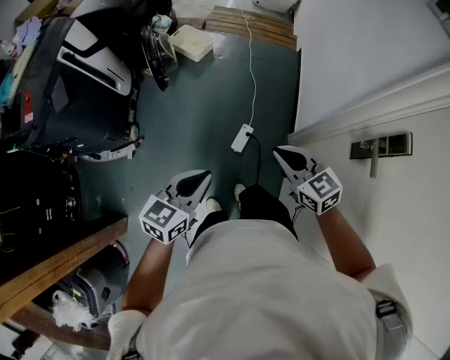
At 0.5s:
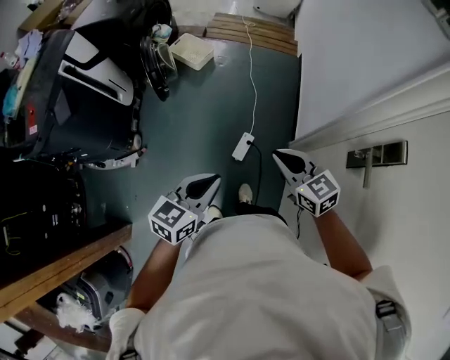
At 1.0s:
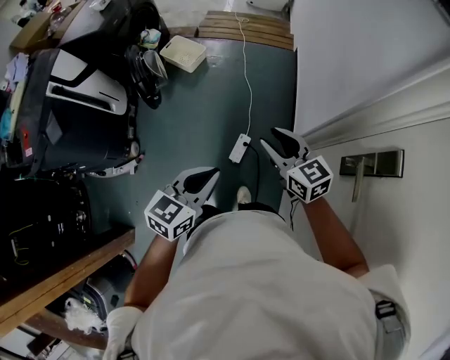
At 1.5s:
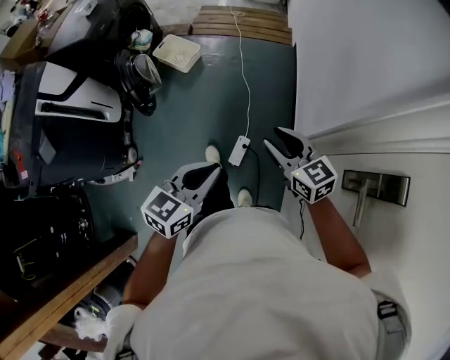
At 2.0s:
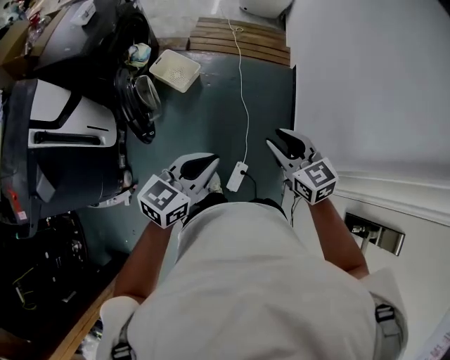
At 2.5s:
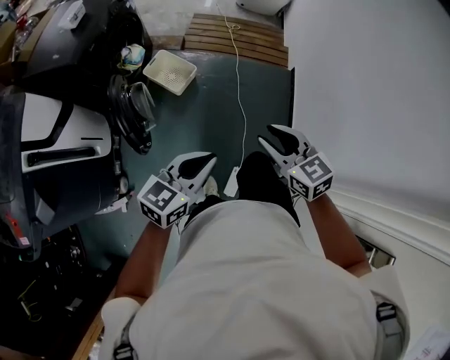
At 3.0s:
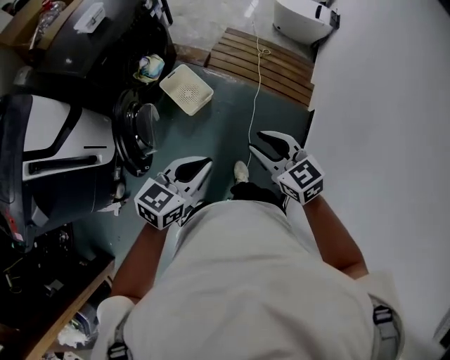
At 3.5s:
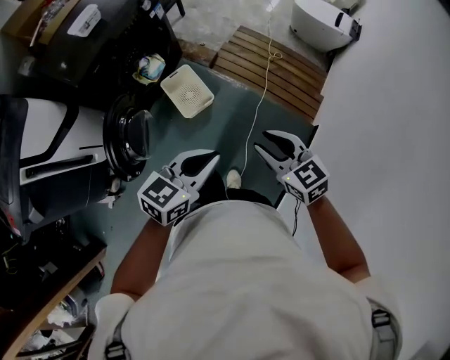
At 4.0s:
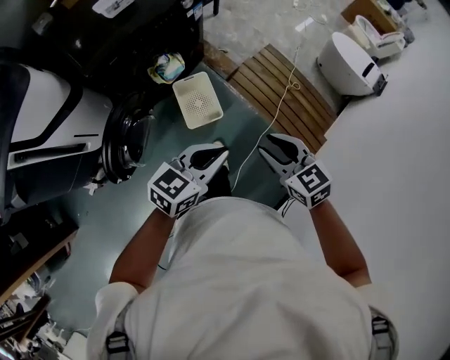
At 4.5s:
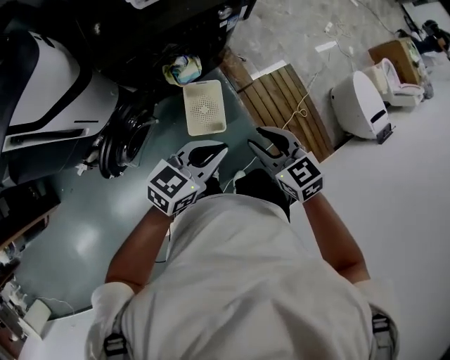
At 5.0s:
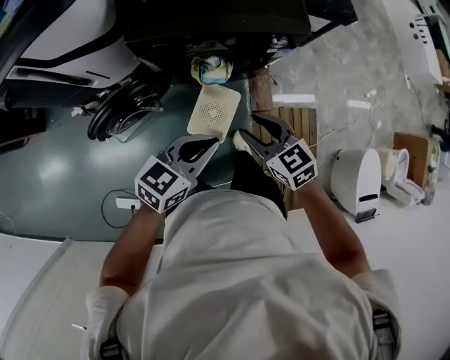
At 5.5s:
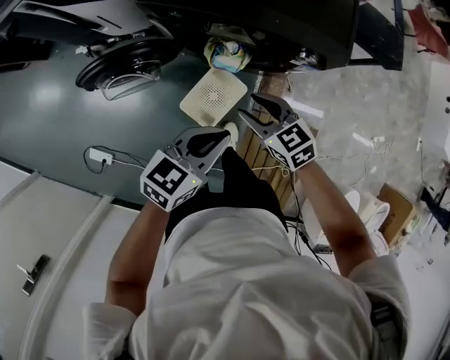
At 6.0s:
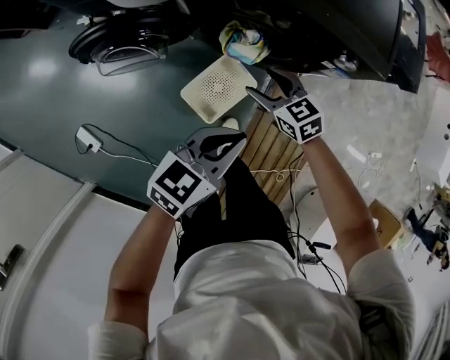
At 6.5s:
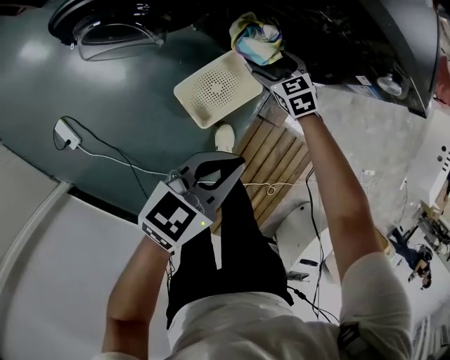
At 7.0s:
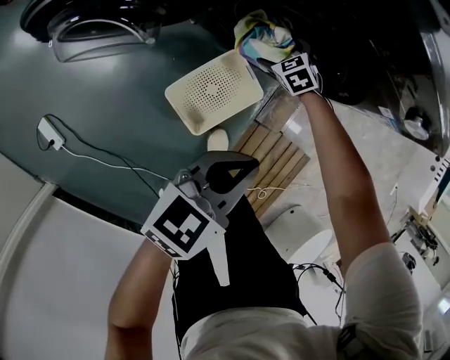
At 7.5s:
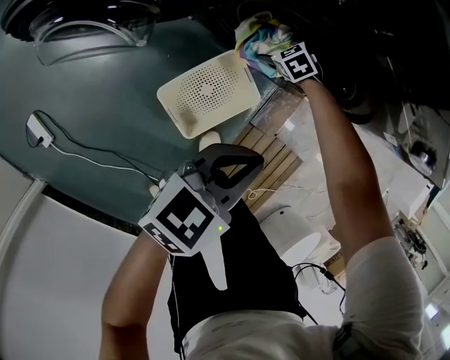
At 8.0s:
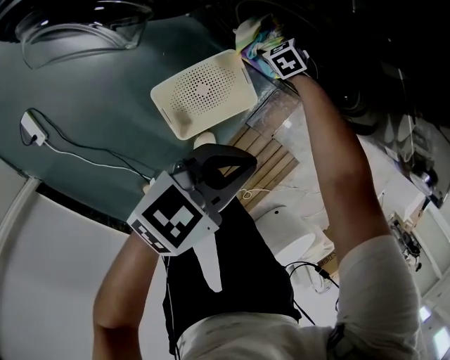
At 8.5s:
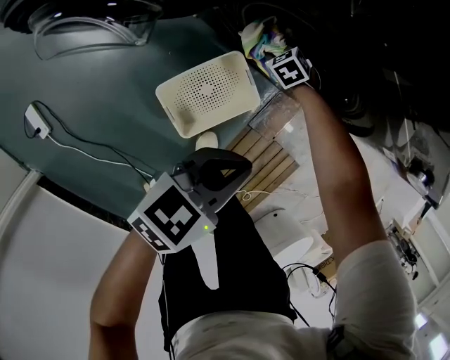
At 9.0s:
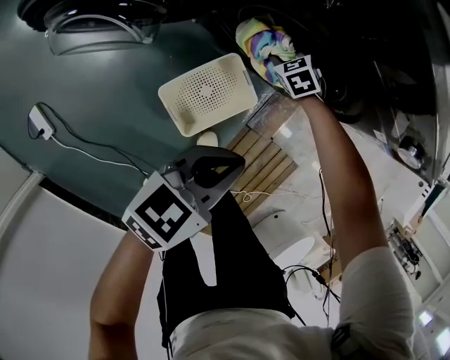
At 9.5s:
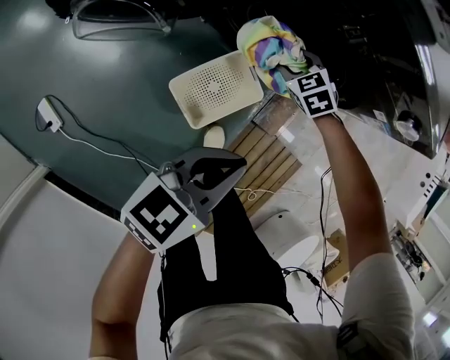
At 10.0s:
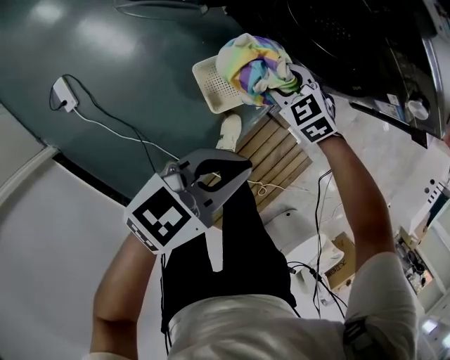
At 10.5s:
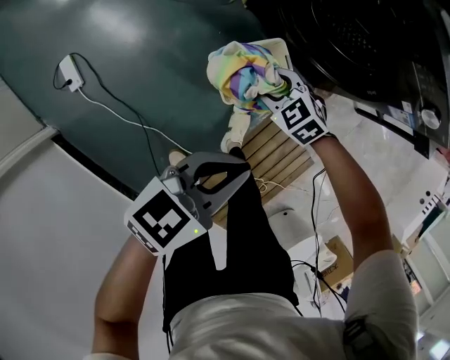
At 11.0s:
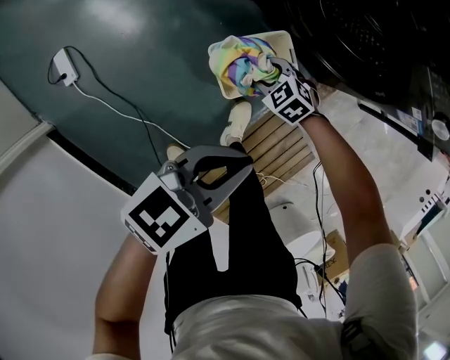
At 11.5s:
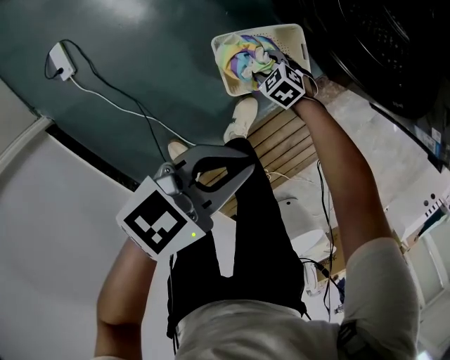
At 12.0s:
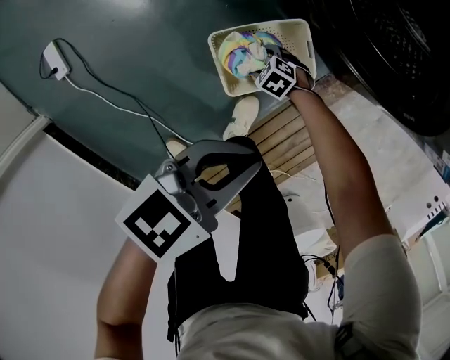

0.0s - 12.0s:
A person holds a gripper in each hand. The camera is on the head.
0.0s - 2.0s: The grippers both shift forward by roughly 35 cm.
2.0s - 4.0s: Both grippers are carried roughly 60 cm. The left gripper swivels roughly 30 degrees. The right gripper swivels roughly 40 degrees.
4.0s - 6.0s: The right gripper ends up some 50 cm from where it was, and rotates some 70 degrees; the left gripper shifts by some 35 cm, and changes its angle by roughly 60 degrees.
6.0s - 8.0s: The left gripper moves downward, some 25 cm. Meanwhile the right gripper goes roughly 50 cm downward and forward, angles its fingers downward, by approximately 30 degrees, and opens.
8.0s - 10.0s: The right gripper moves upward and backward, about 40 cm, changes its angle by some 20 degrees, and closes its fingers; the left gripper goes roughly 20 cm backward and upward.
10.0s - 12.0s: The left gripper travels downward by approximately 15 cm, while the right gripper moves downward, about 35 cm, and swivels approximately 30 degrees.

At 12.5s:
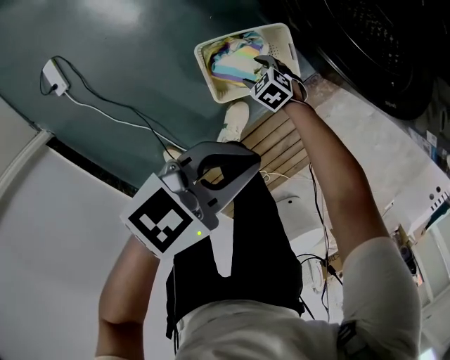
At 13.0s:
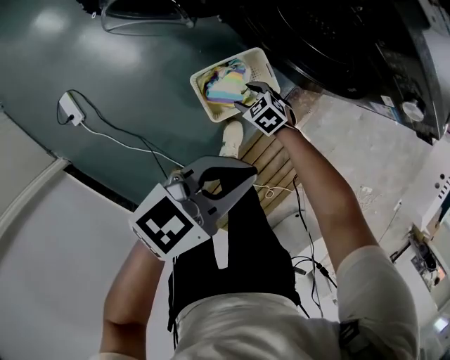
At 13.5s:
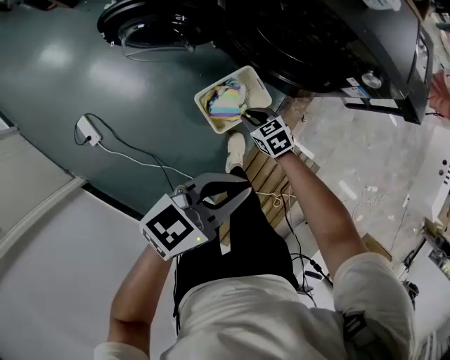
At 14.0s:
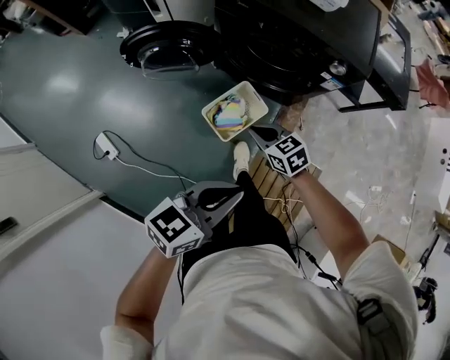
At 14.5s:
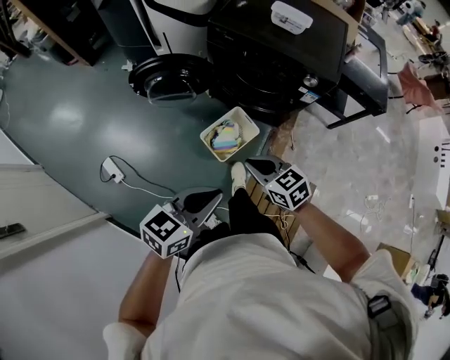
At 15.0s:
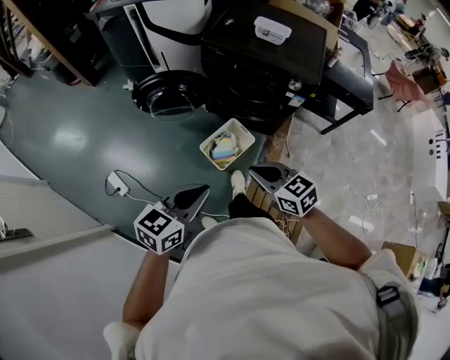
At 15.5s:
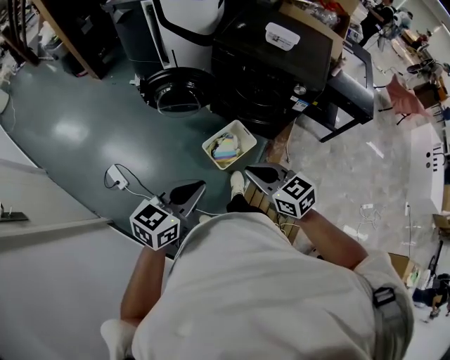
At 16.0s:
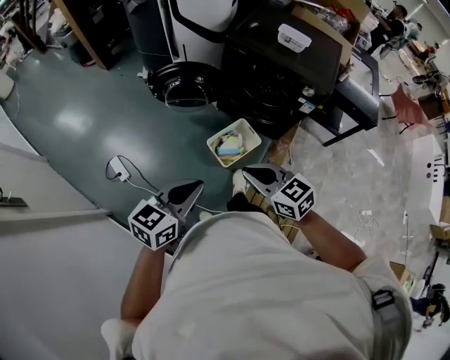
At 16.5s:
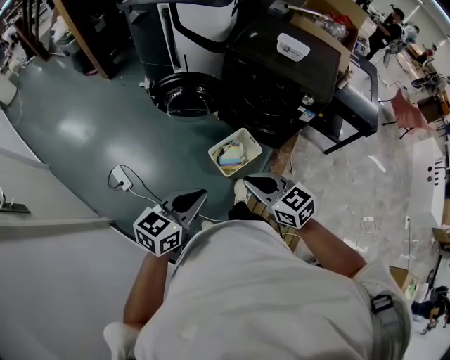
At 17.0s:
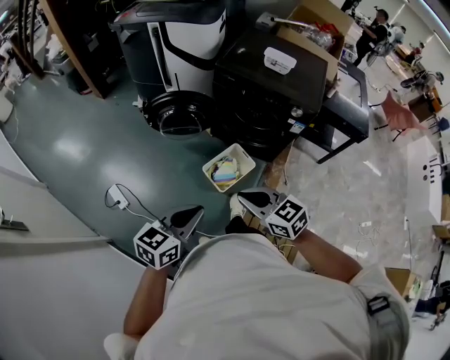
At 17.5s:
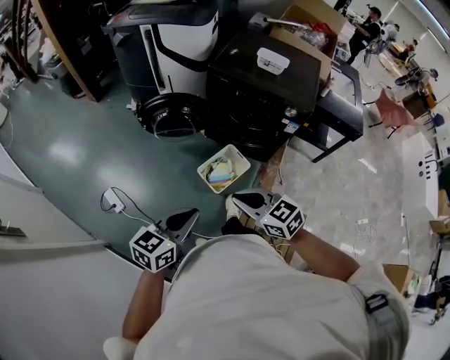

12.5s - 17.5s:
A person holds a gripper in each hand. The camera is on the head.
12.5s - 15.0s: The right gripper travels upward by about 70 cm, angles its fingers upward, by some 40 degrees, and closes its fingers. The left gripper is displaced upward by about 40 cm.
15.0s - 17.5s: The two grippers go roughly 5 cm to the left.

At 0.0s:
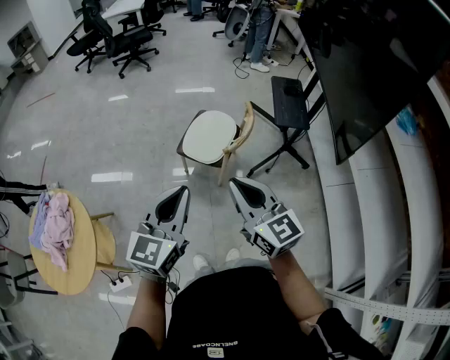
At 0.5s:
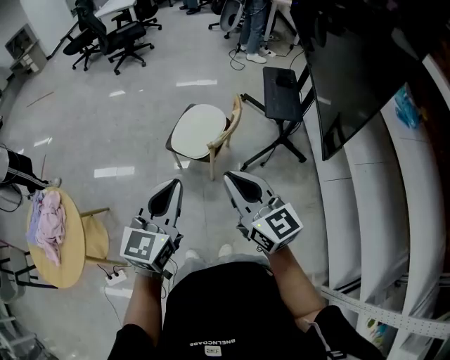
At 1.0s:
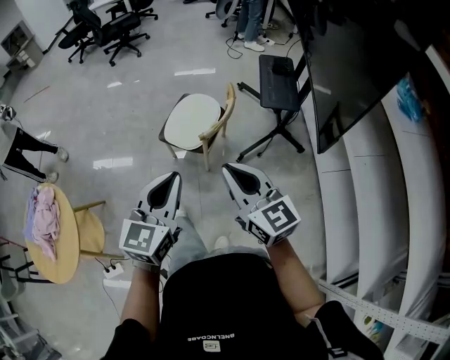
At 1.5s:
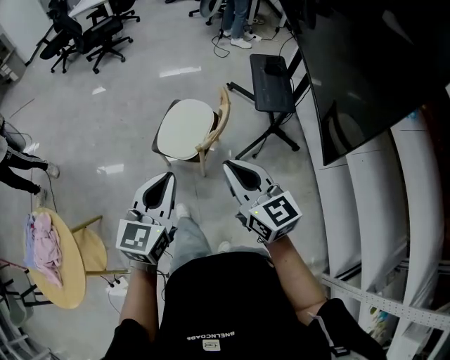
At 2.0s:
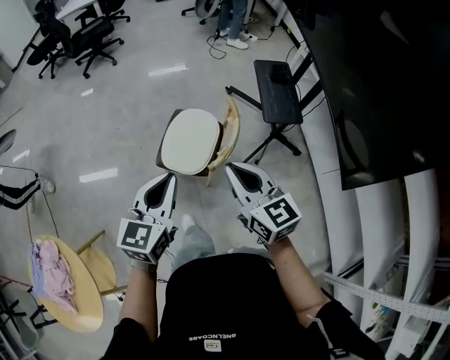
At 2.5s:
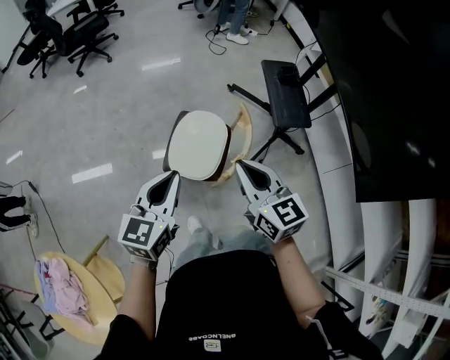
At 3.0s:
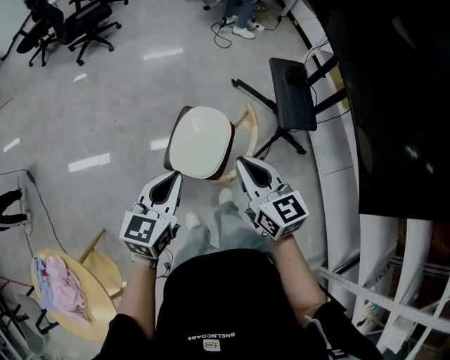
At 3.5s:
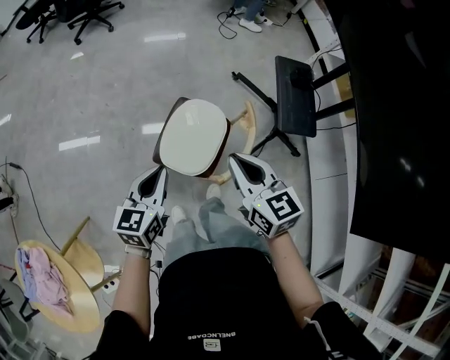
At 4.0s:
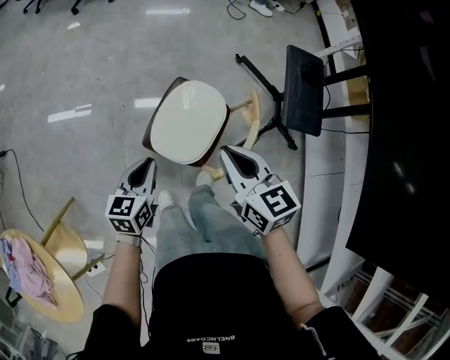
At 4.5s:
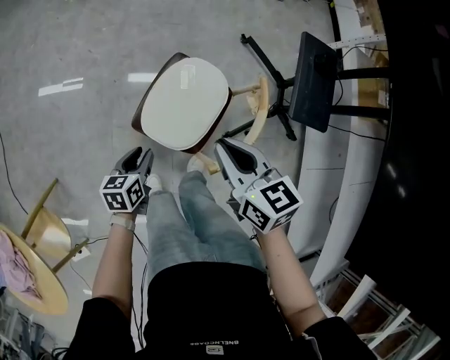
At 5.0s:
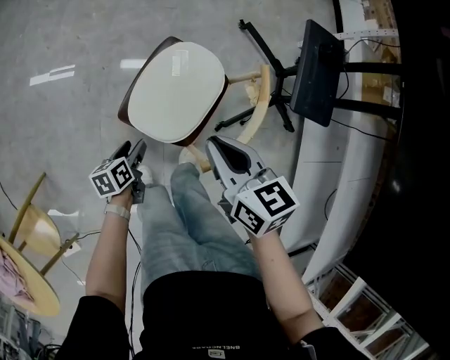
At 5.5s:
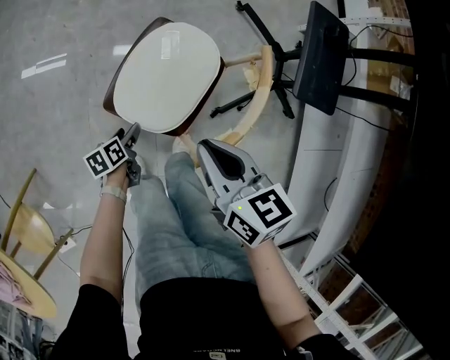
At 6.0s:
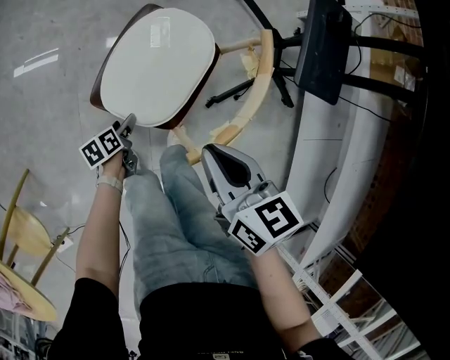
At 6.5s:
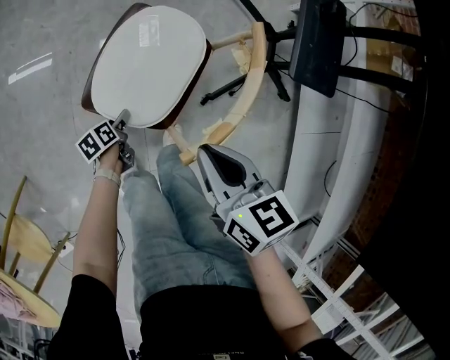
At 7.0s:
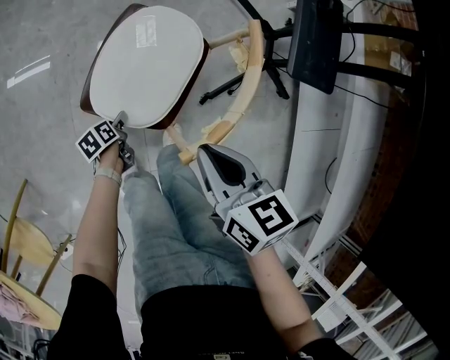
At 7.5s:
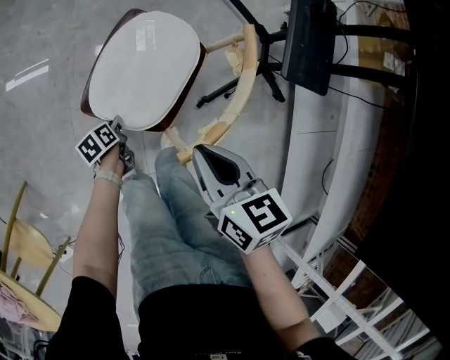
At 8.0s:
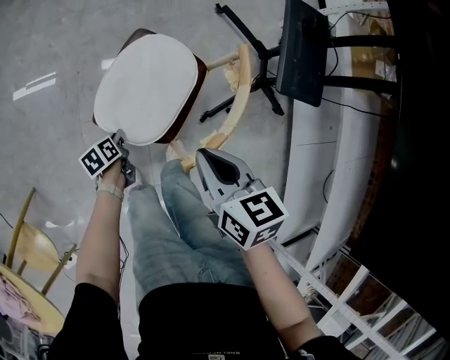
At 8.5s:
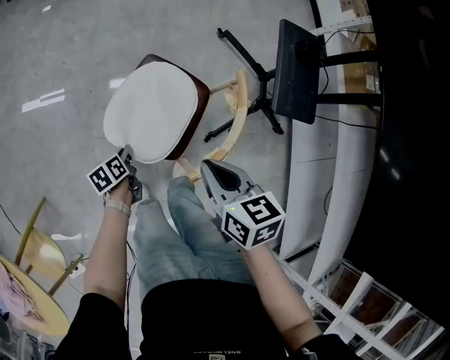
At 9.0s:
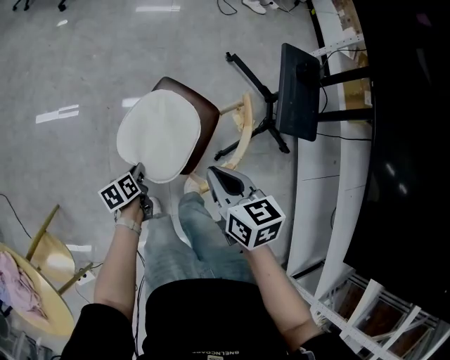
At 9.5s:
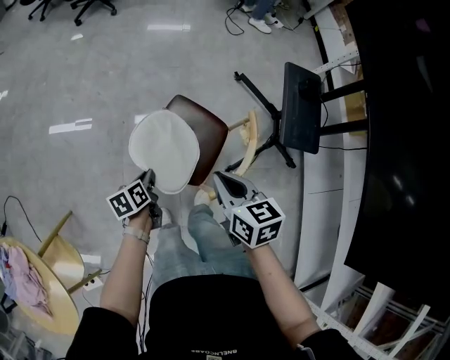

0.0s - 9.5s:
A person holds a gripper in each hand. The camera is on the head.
0.0s - 2.0s: The two grippers go about 20 cm forward.
2.0s - 4.0s: The left gripper is displaced downward and forward by approximately 25 cm, and changes its angle by about 30 degrees; the right gripper shifts roughly 20 cm forward and downward.
4.0s - 5.5s: The left gripper shifts some 30 cm downward, changes its angle by some 40 degrees, and opens, while the right gripper heads downward, covering some 15 cm.
5.5s - 7.5s: The right gripper shifts by approximately 5 cm, while the left gripper moves downward, about 5 cm, and closes up.
7.5s - 9.5s: The left gripper is displaced upward by about 25 cm, while the right gripper travels upward by about 10 cm.
